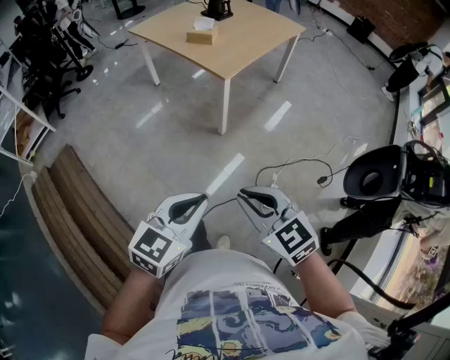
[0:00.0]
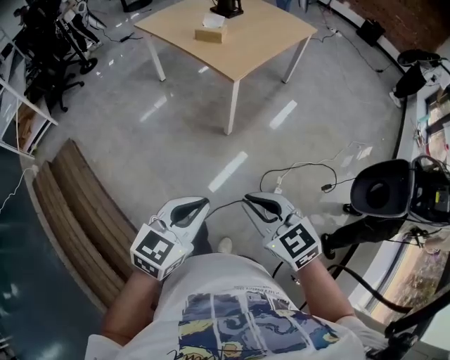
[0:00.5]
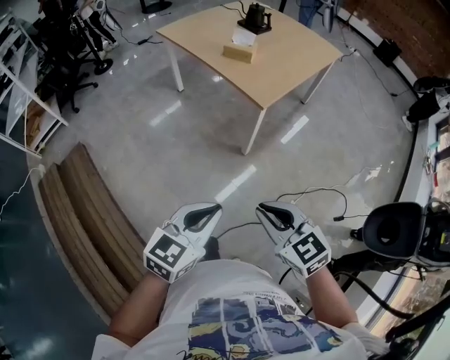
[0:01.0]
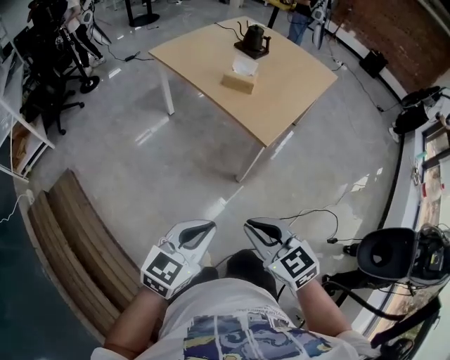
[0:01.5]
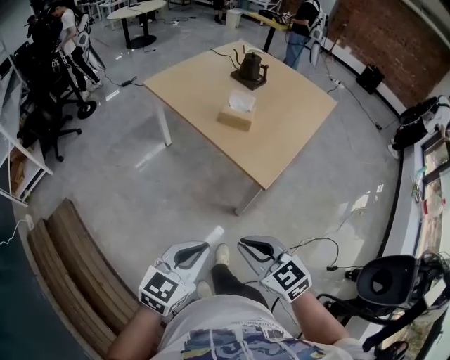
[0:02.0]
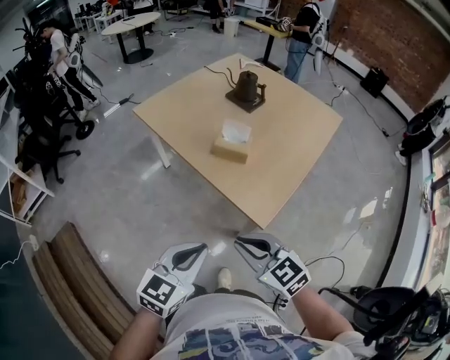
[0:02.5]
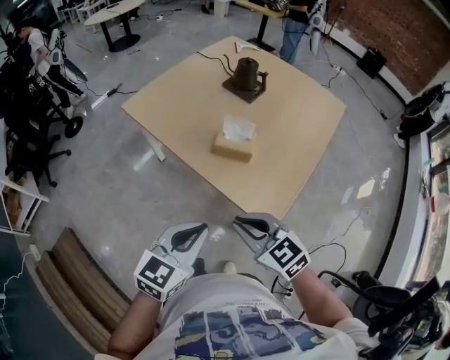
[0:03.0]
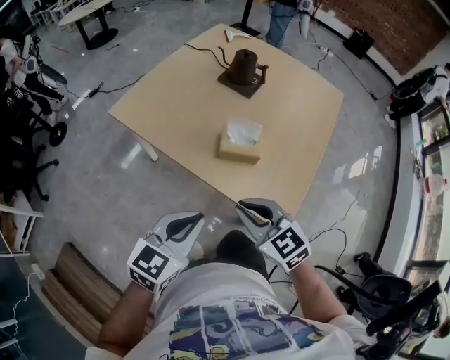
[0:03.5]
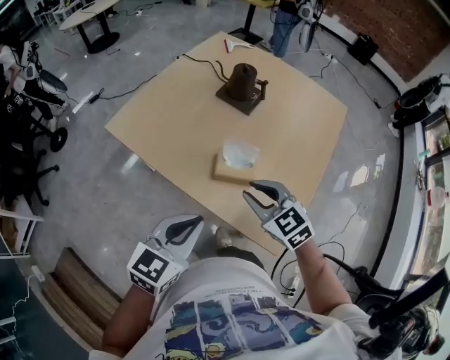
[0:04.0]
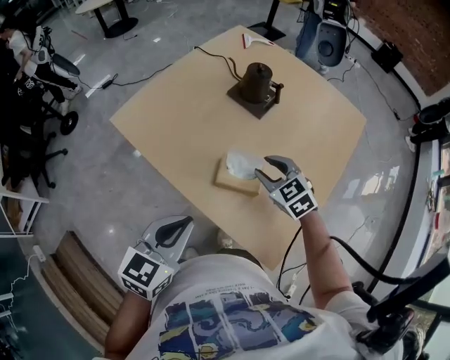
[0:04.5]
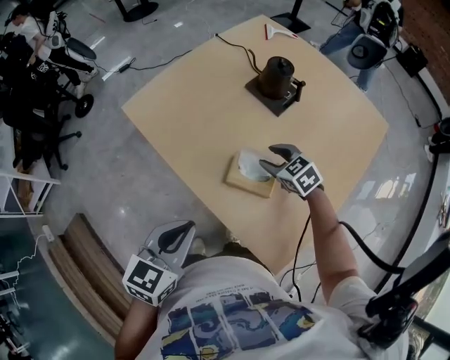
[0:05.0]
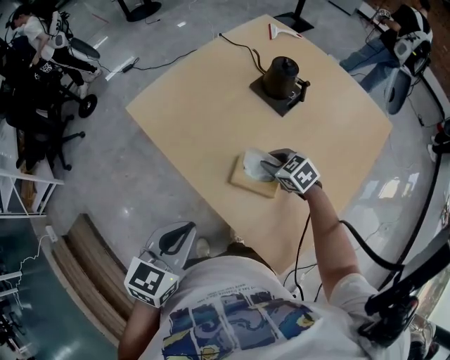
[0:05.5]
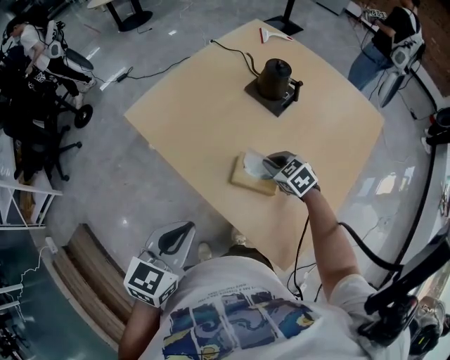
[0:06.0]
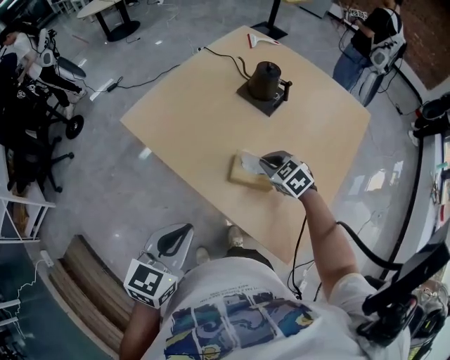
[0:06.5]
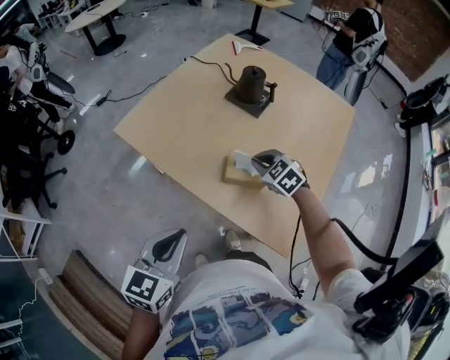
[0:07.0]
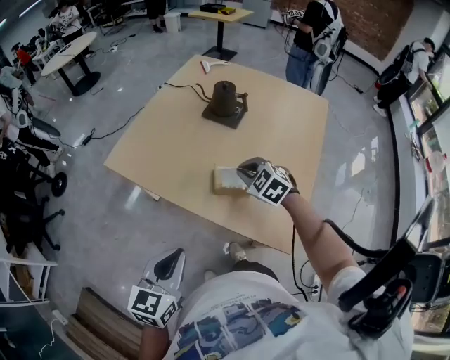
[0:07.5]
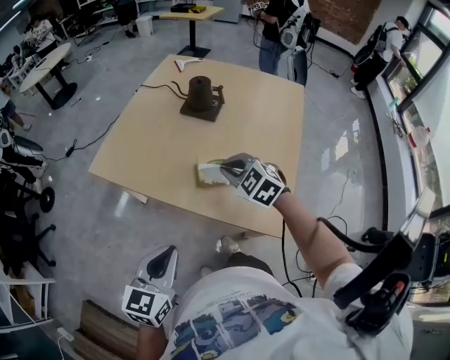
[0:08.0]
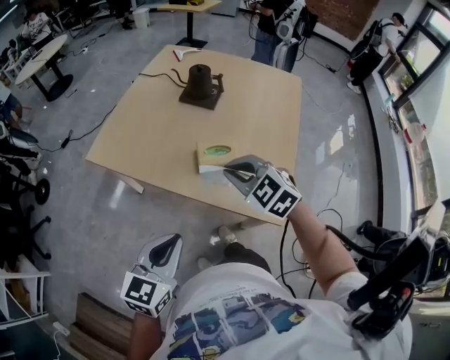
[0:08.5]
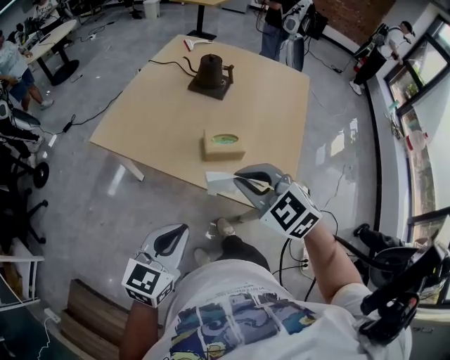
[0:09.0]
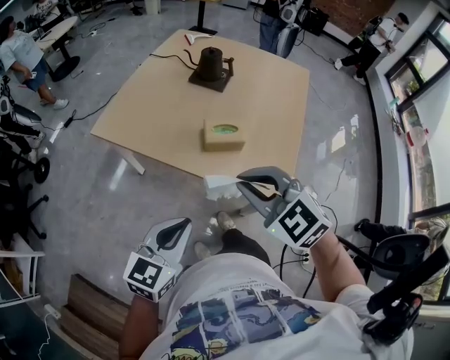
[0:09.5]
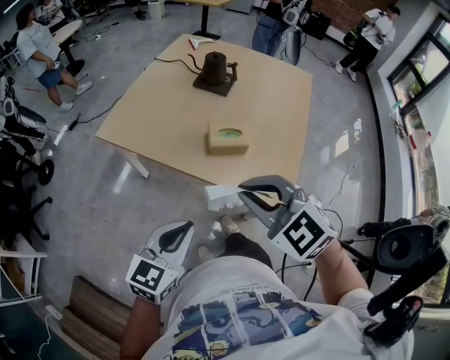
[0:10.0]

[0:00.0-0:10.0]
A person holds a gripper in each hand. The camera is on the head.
0:00.0 to 0:02.0: Both grippers move forward and to the left, about 40 cm.
0:02.0 to 0:04.0: Both grippers are carried forward, roughly 50 cm.
0:04.0 to 0:06.0: The left gripper changes place by some 5 cm. Meanwhile the right gripper goes some 20 cm forward and downward, rotates about 20 degrees, and opens and closes again.
0:06.0 to 0:08.0: The left gripper moves backward and to the left, approximately 10 cm. The right gripper is displaced upward and backward by roughly 20 cm, and changes its angle by approximately 20 degrees.
0:08.0 to 0:10.0: The left gripper moves backward, about 5 cm. The right gripper is displaced backward and upward by about 25 cm.

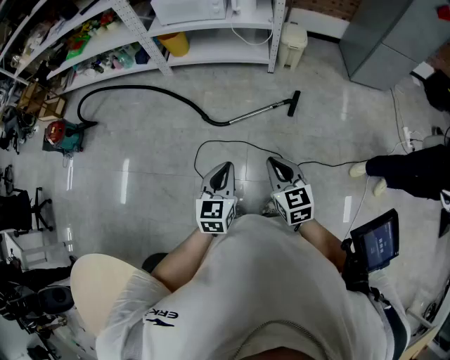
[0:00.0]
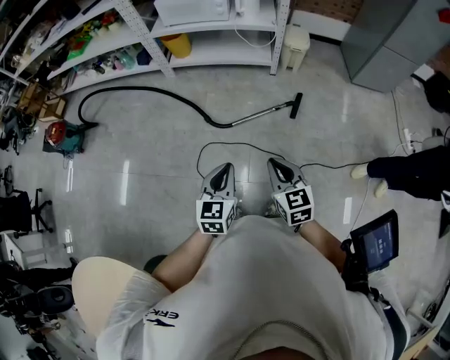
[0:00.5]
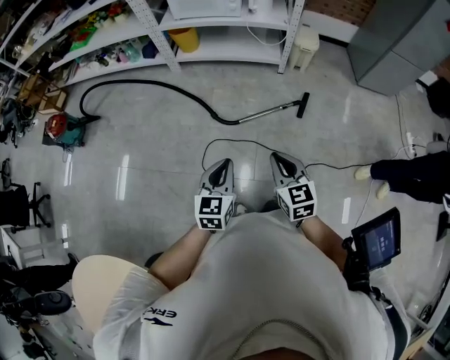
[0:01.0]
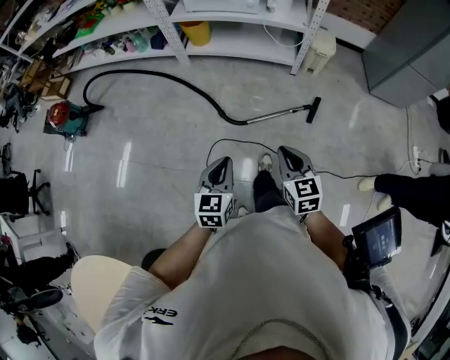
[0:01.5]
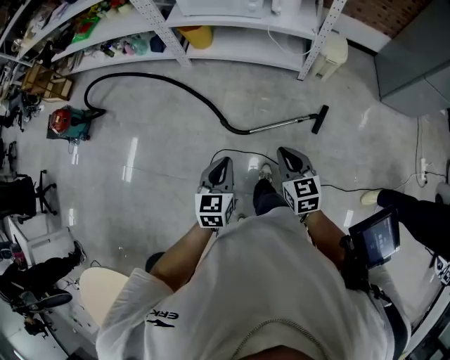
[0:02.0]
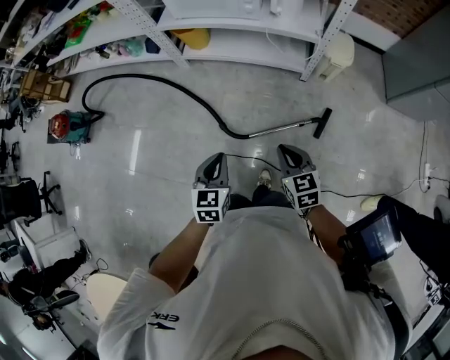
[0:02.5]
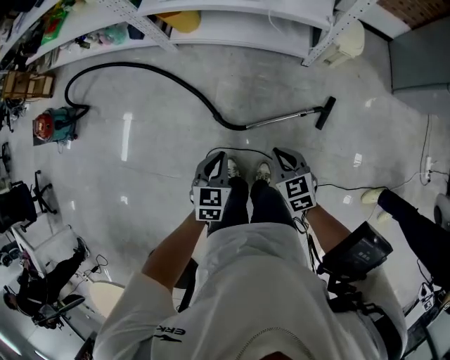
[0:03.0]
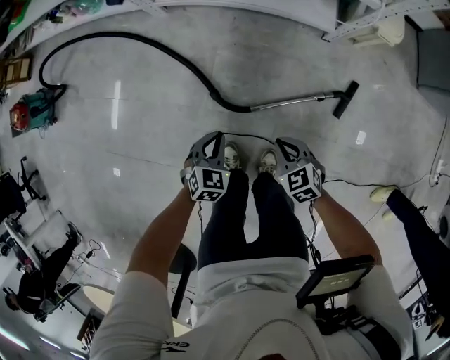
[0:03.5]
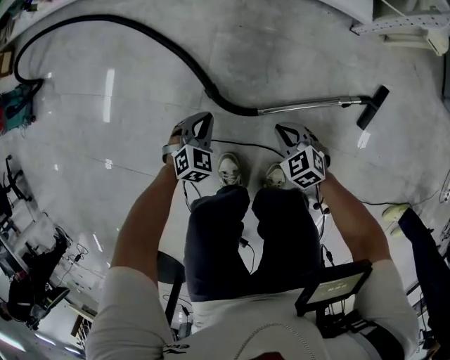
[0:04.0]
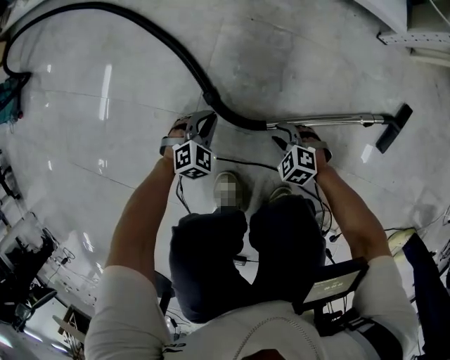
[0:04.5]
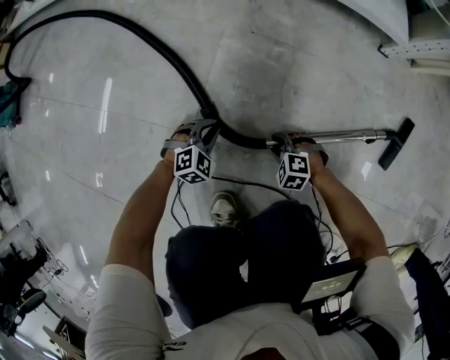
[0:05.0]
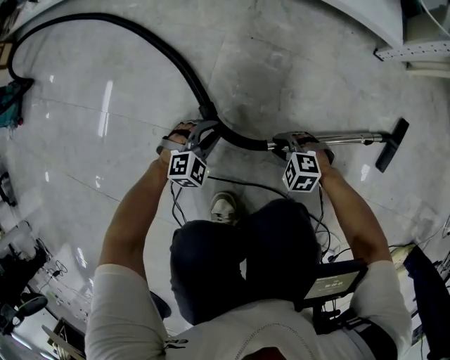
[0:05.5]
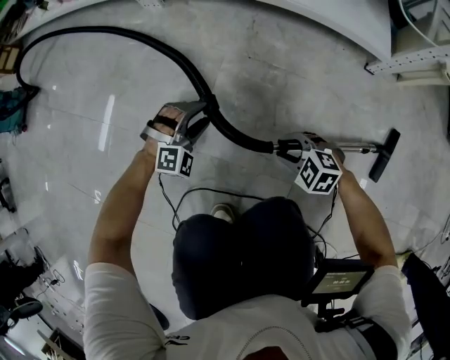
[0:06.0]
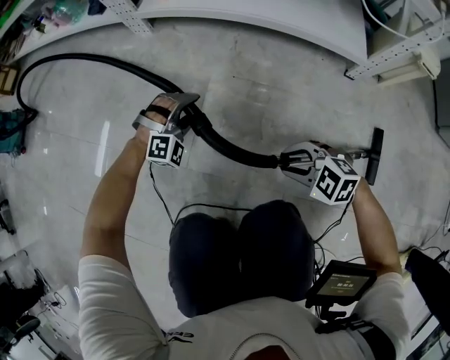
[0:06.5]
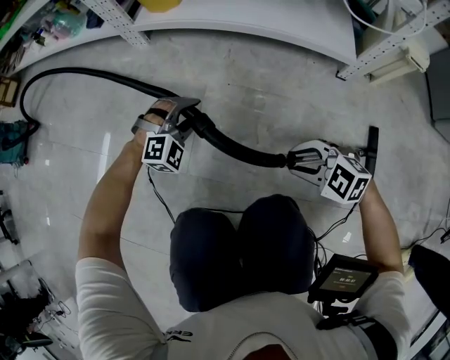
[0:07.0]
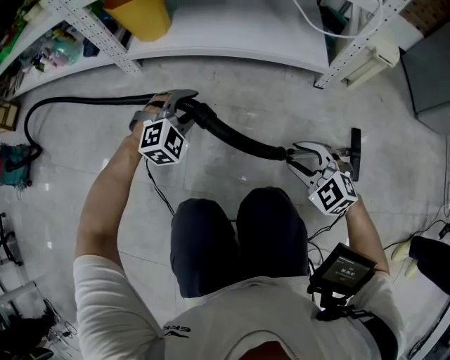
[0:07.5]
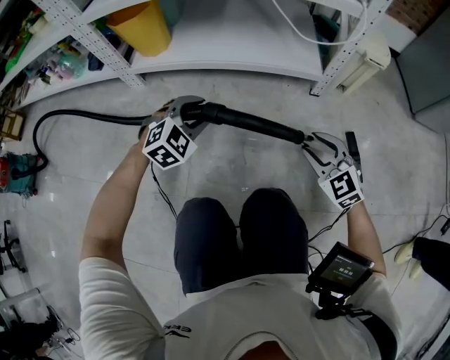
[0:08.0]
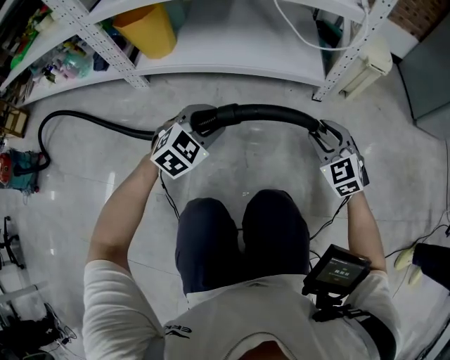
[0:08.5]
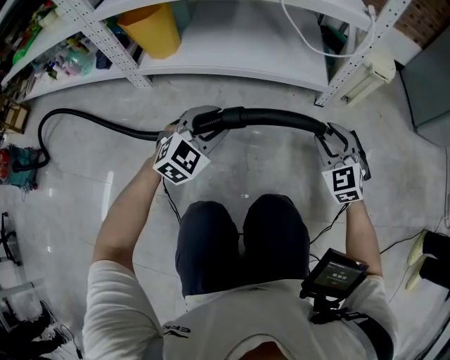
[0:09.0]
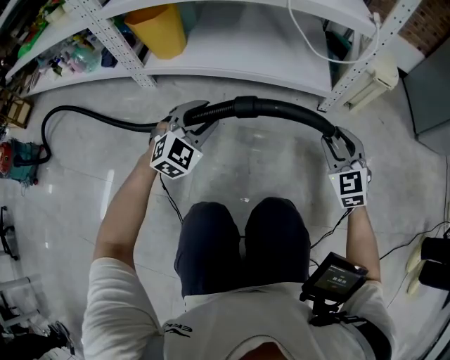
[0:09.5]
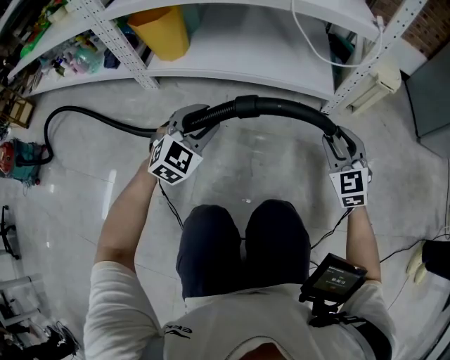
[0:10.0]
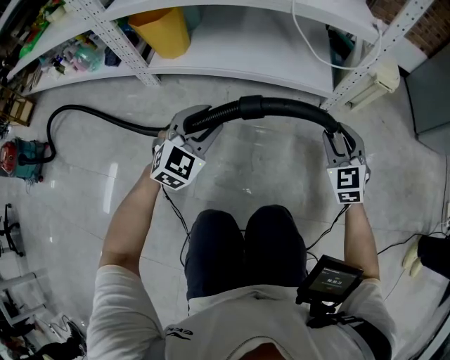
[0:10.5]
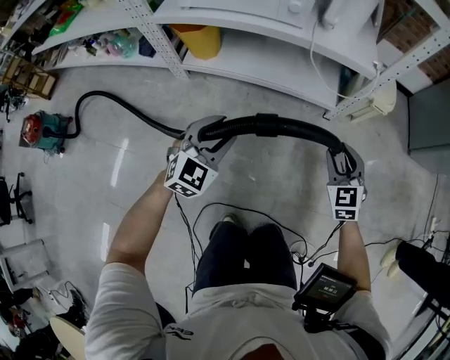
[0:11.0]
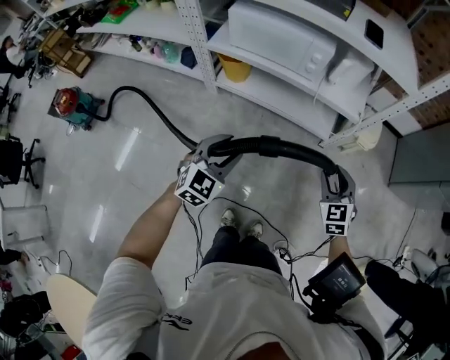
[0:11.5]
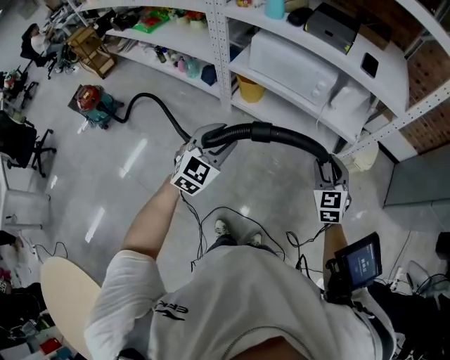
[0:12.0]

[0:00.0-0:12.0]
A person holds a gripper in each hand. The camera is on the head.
0:00.0 to 0:02.0: Both grippers move forward, about 25 cm.
0:02.0 to 0:04.0: Both grippers travel together downward and forward, roughly 70 cm. The right gripper swivels some 40 degrees. Meanwhile the left gripper rotates some 50 degrees.
0:04.0 to 0:06.0: The left gripper is displaced forward and downward by about 15 cm, rolls clockwise, seen from behind, by approximately 40 degrees, and opens up; the right gripper heads downward and forward, covering approximately 15 cm, turns by some 30 degrees, and opens its fingers.
0:06.0 to 0:08.0: Both grippers travel together upward, some 20 cm. The right gripper turns by roughly 50 degrees.
0:08.0 to 0:10.0: The right gripper goes some 5 cm forward.
0:10.0 to 0:12.0: The grippers both shift upward by about 60 cm. The left gripper rotates about 20 degrees.

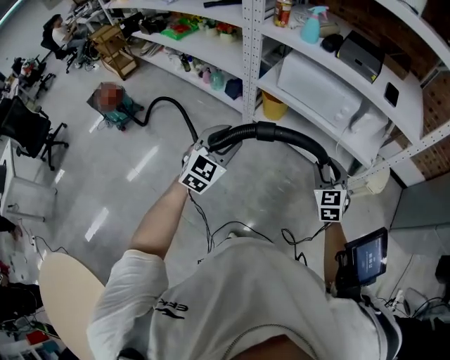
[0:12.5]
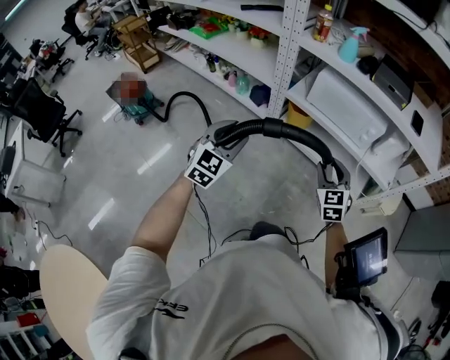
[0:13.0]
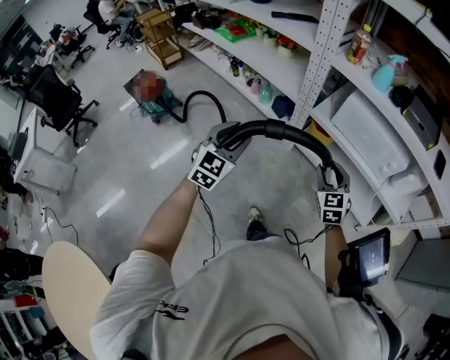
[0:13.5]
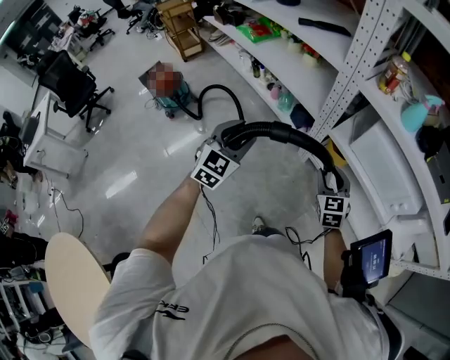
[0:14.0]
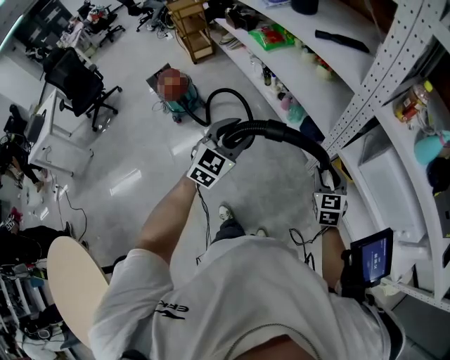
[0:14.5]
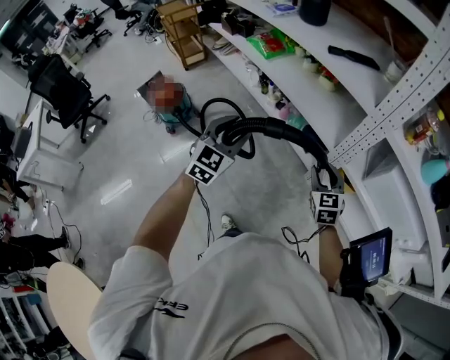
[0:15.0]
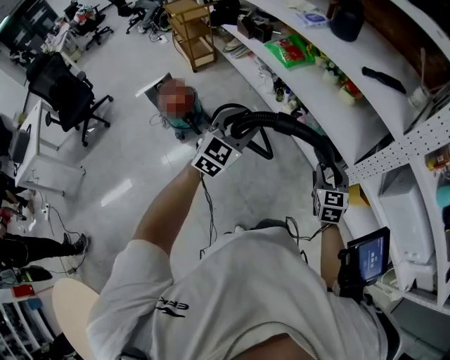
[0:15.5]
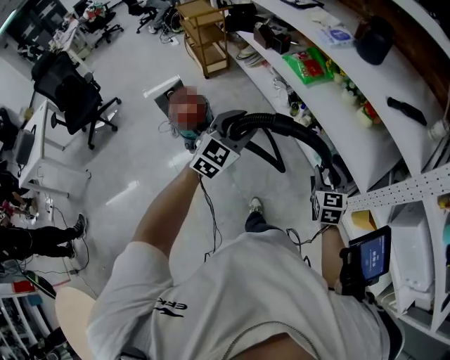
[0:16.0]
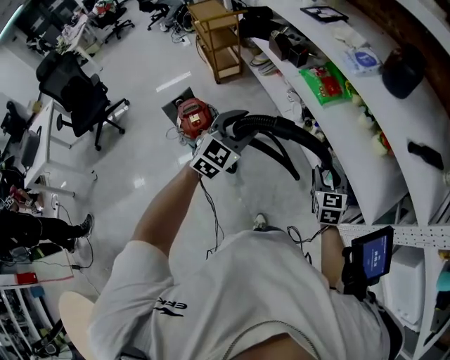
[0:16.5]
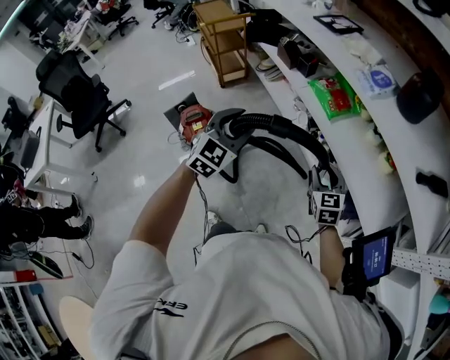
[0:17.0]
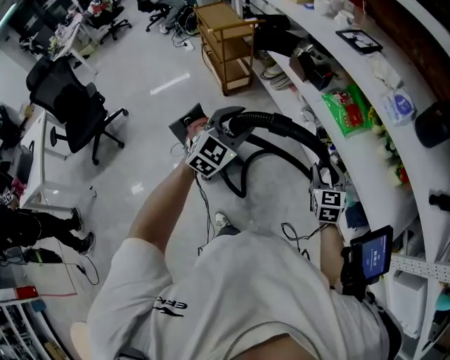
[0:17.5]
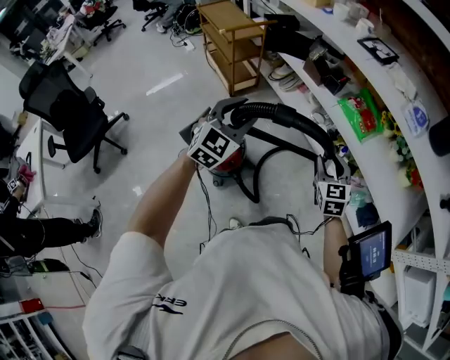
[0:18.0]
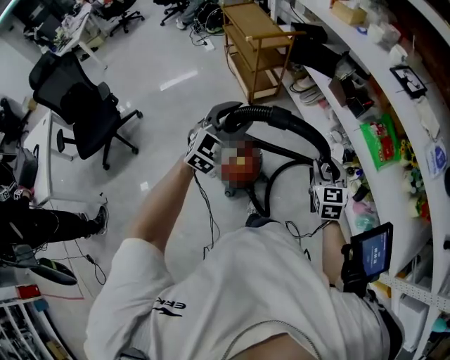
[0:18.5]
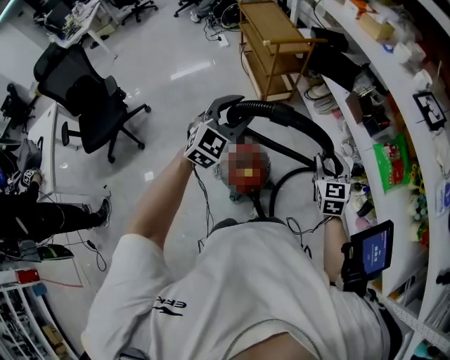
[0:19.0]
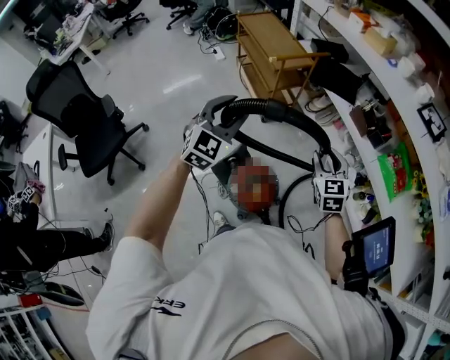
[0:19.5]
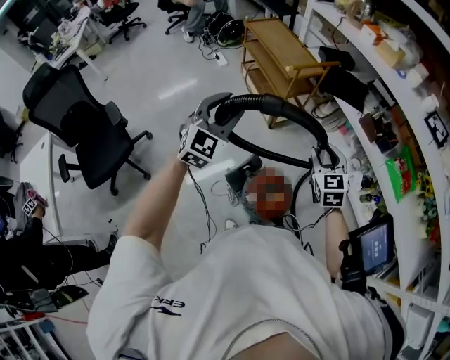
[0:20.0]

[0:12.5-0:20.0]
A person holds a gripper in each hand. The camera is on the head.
0:12.5 to 0:14.5: The two grippers travel together, to the left and forward, about 50 cm. The left gripper turns by some 20 degrees. The right gripper turns by about 20 degrees.
0:14.5 to 0:16.5: The pair of grippers is taken to the left and forward, approximately 50 cm.
0:16.5 to 0:18.0: The grippers both shift to the left and forward by some 35 cm.
0:18.0 to 0:20.0: Both grippers are carried to the left and forward, about 50 cm.
